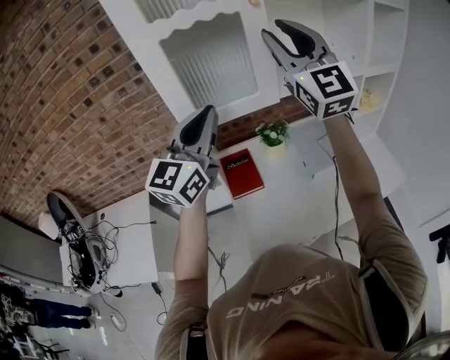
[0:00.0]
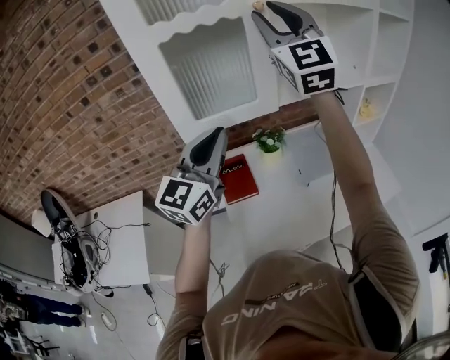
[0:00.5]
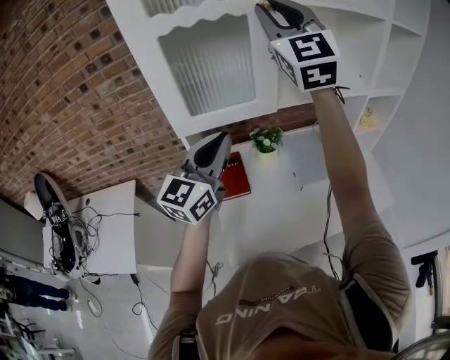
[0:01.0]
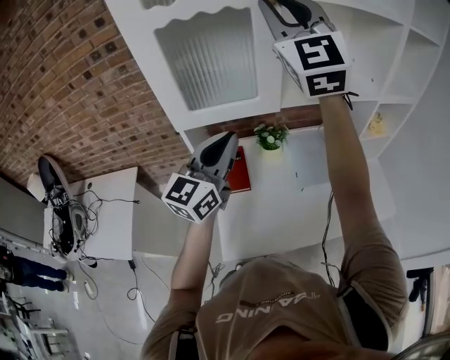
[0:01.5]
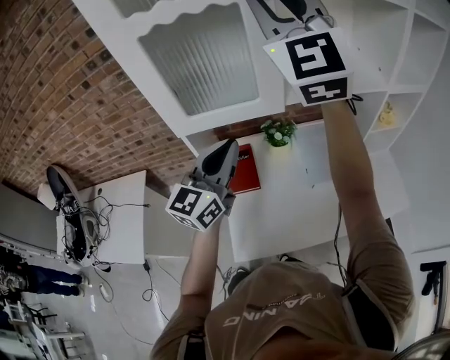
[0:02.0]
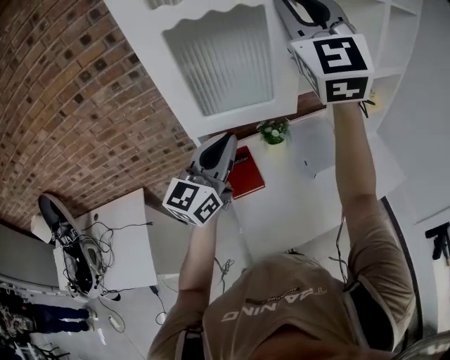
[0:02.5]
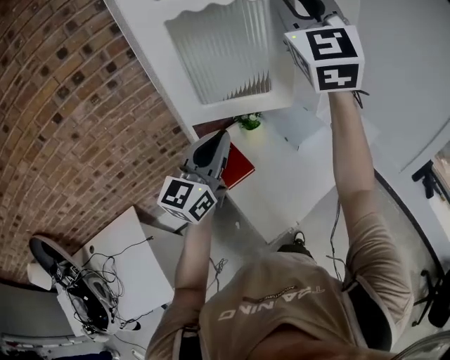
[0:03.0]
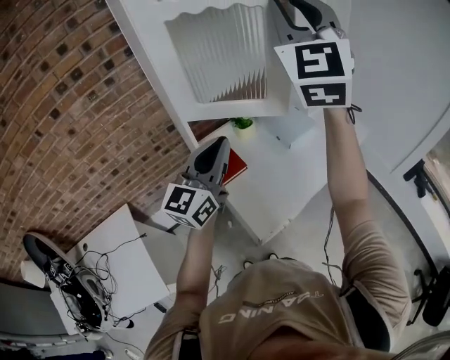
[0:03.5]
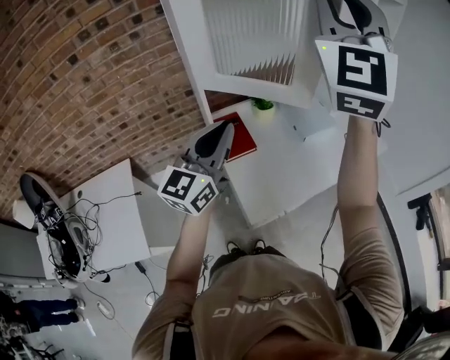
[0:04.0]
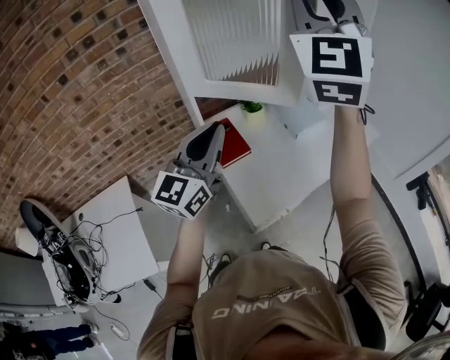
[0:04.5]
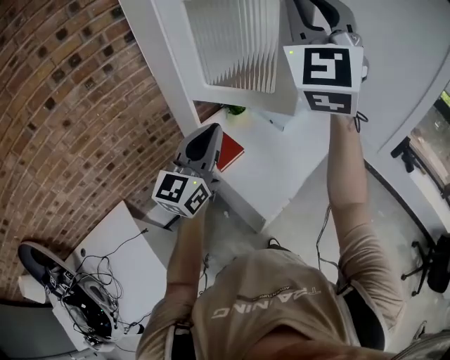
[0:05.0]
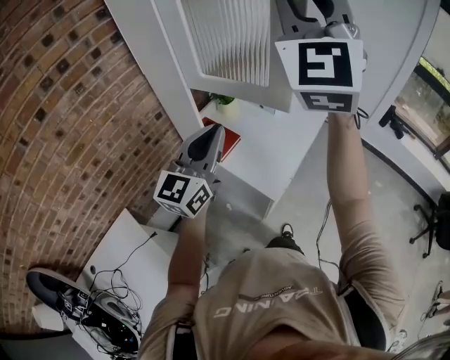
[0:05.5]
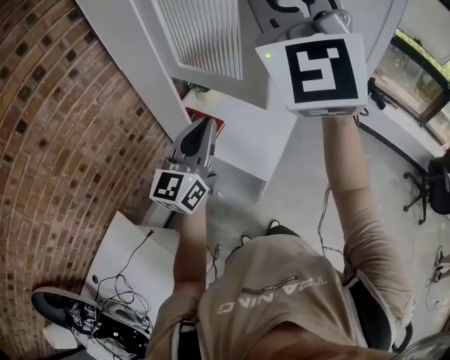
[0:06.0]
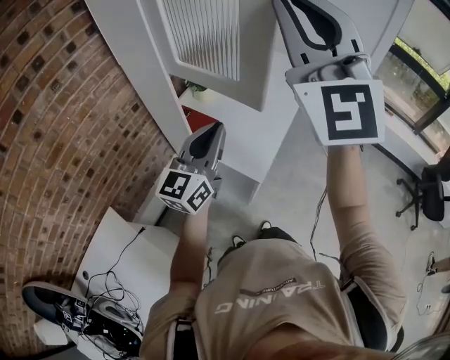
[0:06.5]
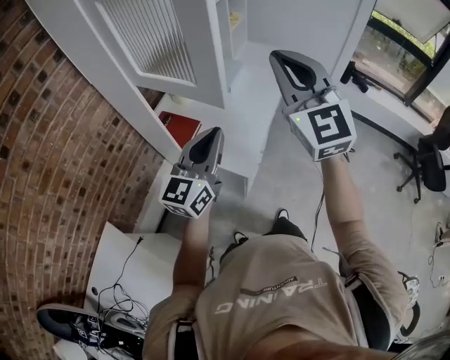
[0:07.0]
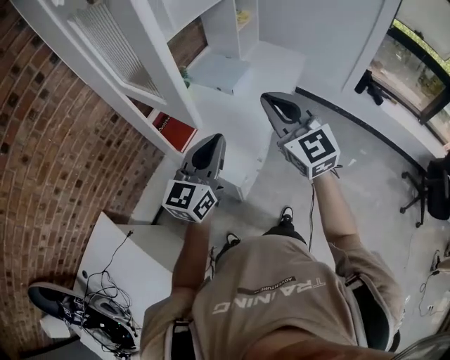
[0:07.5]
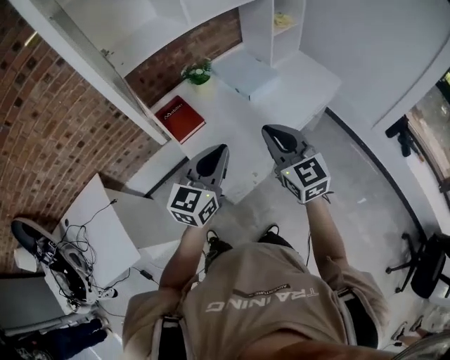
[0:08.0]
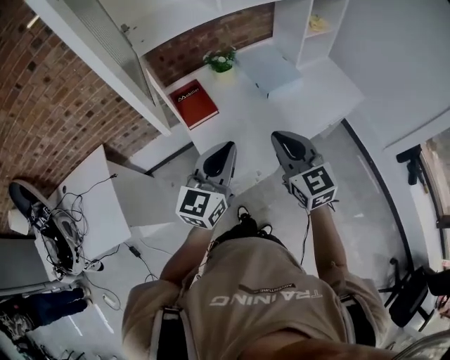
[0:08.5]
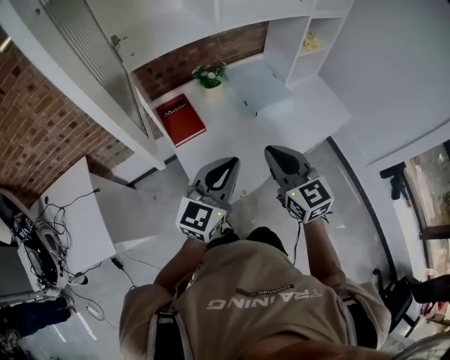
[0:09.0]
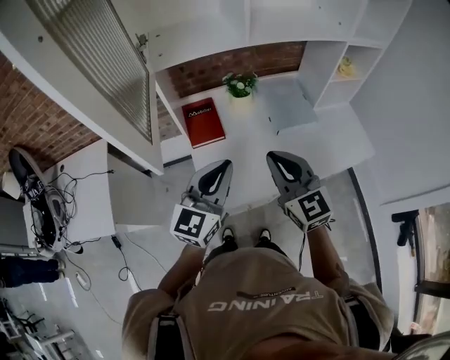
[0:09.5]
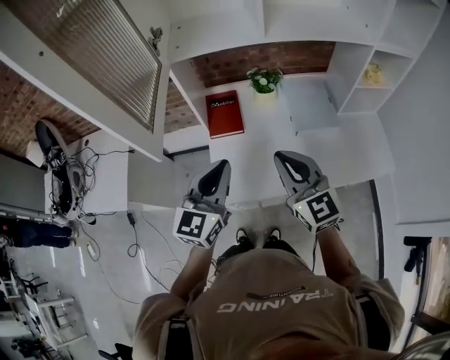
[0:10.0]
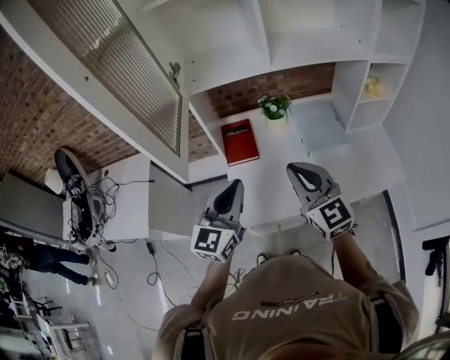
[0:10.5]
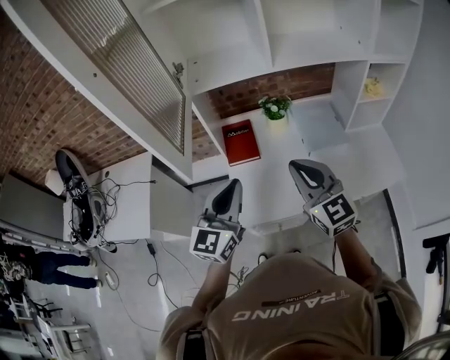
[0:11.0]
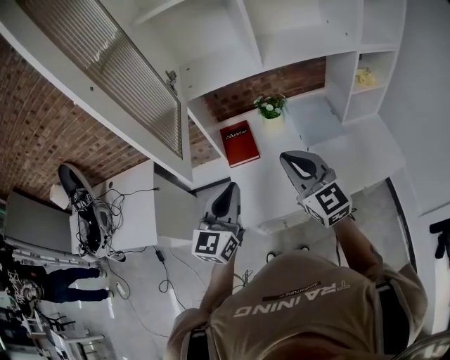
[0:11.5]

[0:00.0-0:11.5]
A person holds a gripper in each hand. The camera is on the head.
0:00.0 to 0:02.0: The right gripper heads upward, covering approximately 5 cm; the left gripper is displaced downward by approximately 10 cm.
0:02.0 to 0:04.0: The right gripper changes place by some 15 cm, and changes its angle by roughly 30 degrees; the left gripper ends up roughly 15 cm from where it was.
0:04.0 to 0:06.0: The left gripper moves backward and to the left, about 10 cm, and rotates approximately 30 degrees; the right gripper travels backward by roughly 20 cm, and turns by some 20 degrees.
0:06.0 to 0:07.5: The right gripper moves downward and to the right, about 35 cm, and changes its angle by roughly 50 degrees. The left gripper shifts approximately 20 cm to the right and downward.
0:07.5 to 0:09.5: The left gripper moves some 10 cm, and rotates roughly 40 degrees, while the right gripper ends up some 15 cm from where it was, and changes its angle by some 40 degrees.
0:09.5 to 0:11.5: The right gripper moves upward, approximately 5 cm; the left gripper ends up approximately 5 cm from where it was.

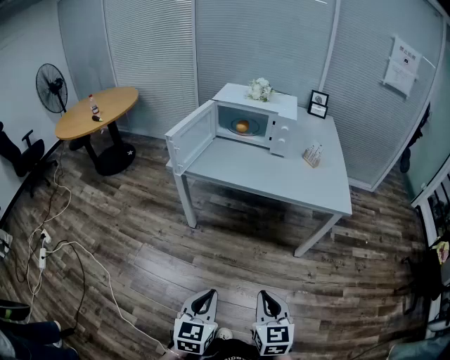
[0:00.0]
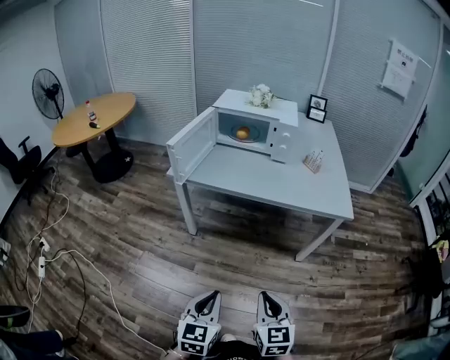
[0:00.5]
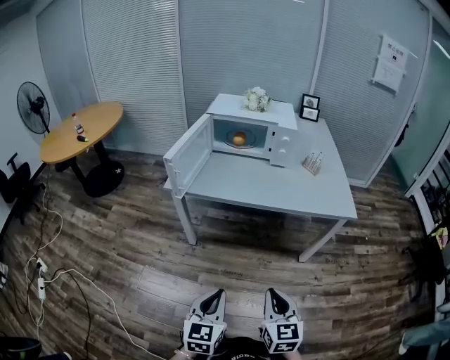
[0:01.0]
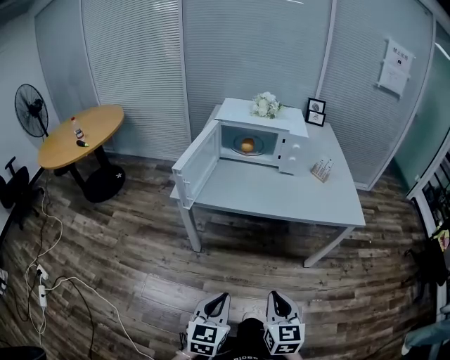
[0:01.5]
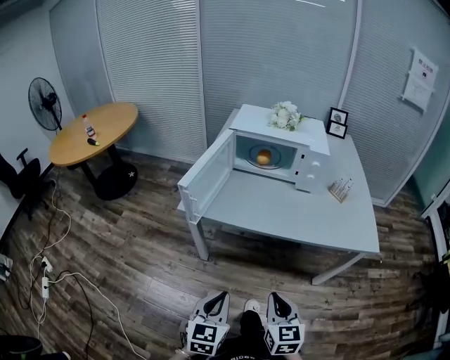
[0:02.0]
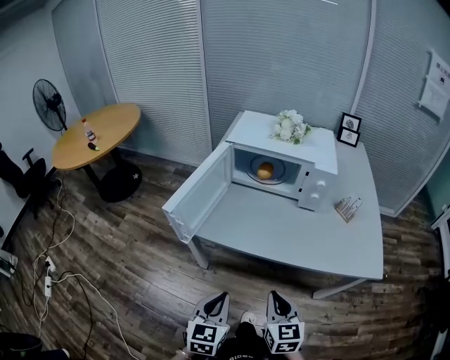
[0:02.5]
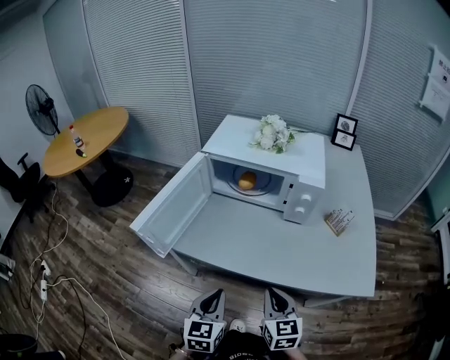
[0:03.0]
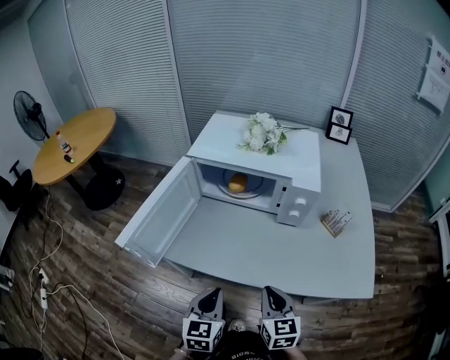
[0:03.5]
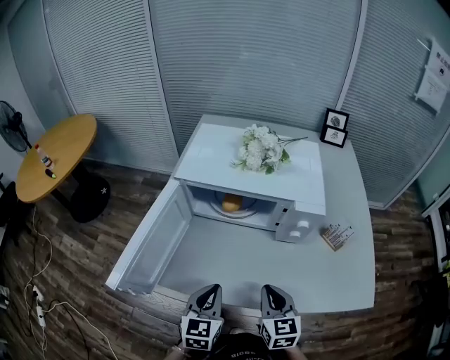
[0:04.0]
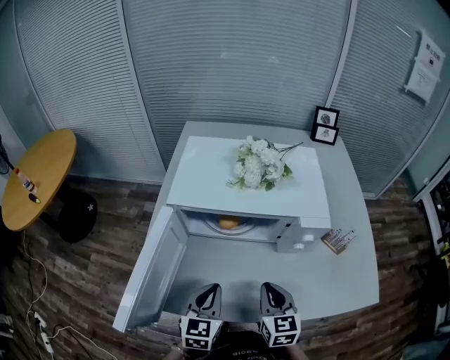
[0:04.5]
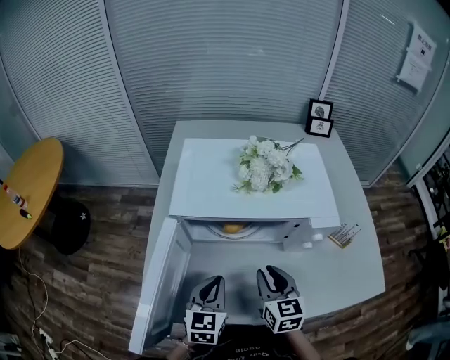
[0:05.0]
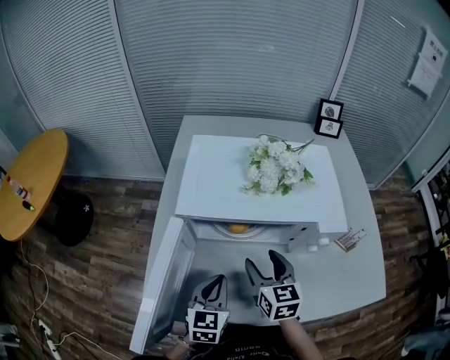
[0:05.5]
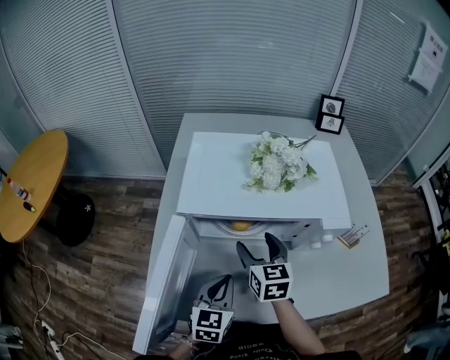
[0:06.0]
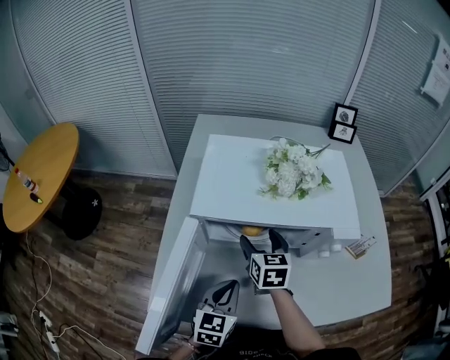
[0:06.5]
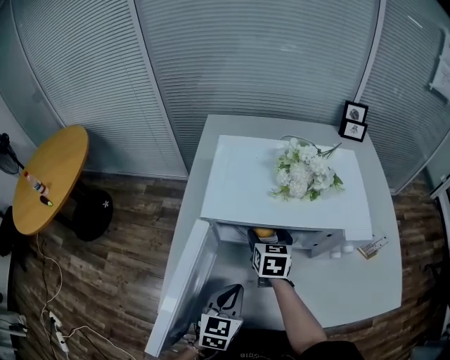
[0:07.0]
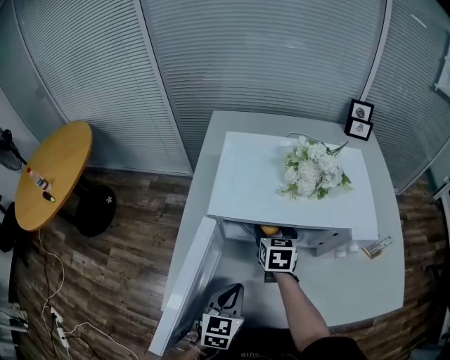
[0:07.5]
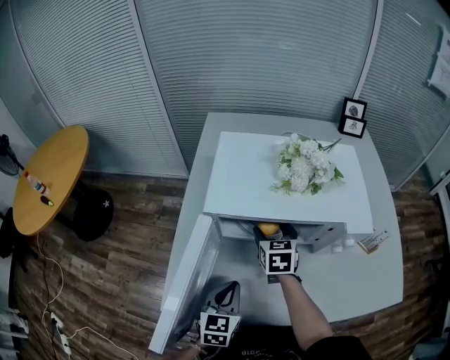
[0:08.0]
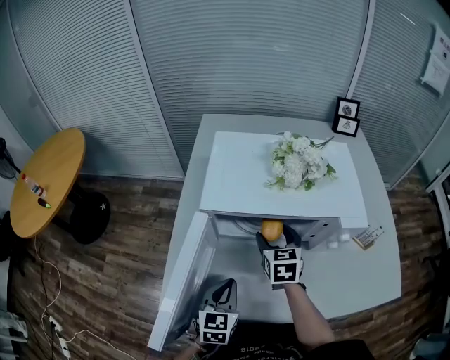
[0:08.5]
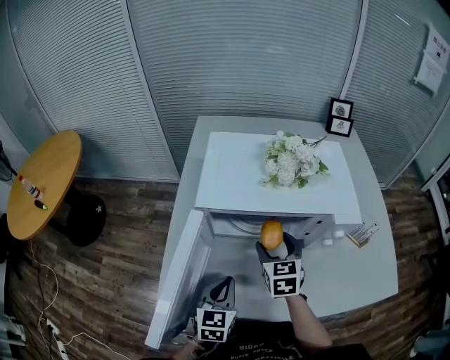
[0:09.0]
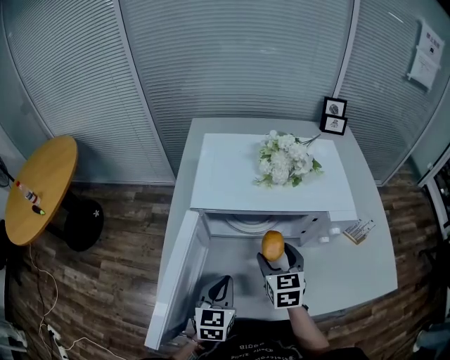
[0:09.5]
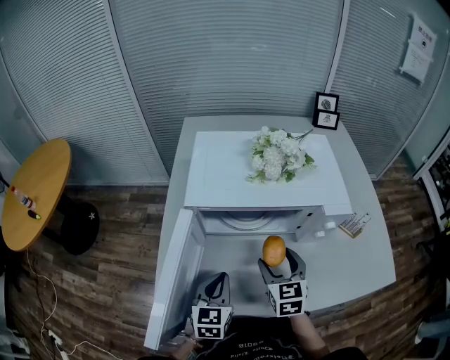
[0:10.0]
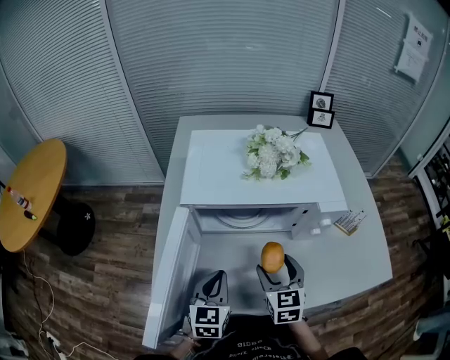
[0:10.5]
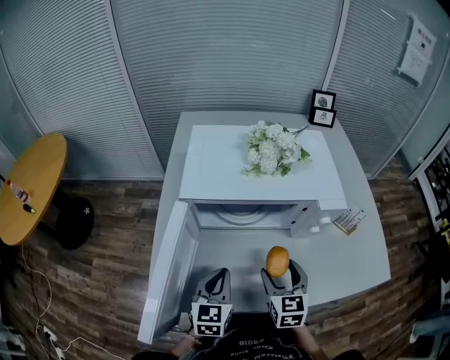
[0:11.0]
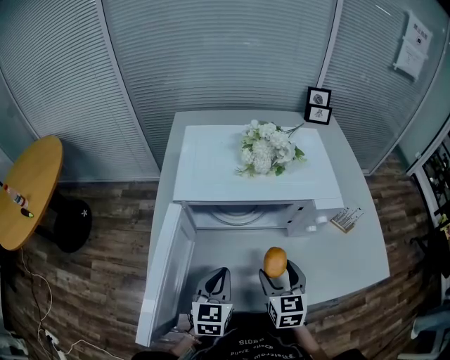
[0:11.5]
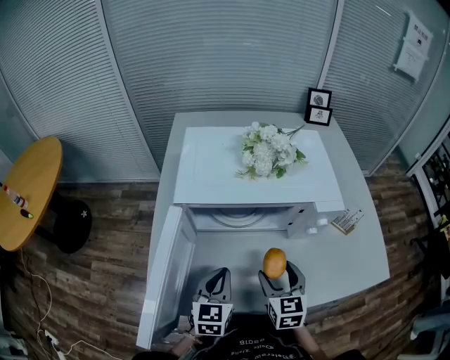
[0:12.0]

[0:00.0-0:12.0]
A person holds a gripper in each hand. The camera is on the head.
0:00.0 to 0:02.0: The two grippers go some 25 cm forward and to the left.
0:02.0 to 0:04.0: Both grippers move forward, about 35 cm.
0:04.0 to 0:06.0: The right gripper travels forward and to the left by roughly 25 cm, and opens. Meanwhile the left gripper travels forward by approximately 10 cm.
0:06.0 to 0:08.0: The right gripper moves forward, approximately 5 cm.
0:08.0 to 0:10.0: The right gripper is displaced backward and to the right by approximately 15 cm.
0:10.0 to 0:12.0: The right gripper moves some 5 cm.

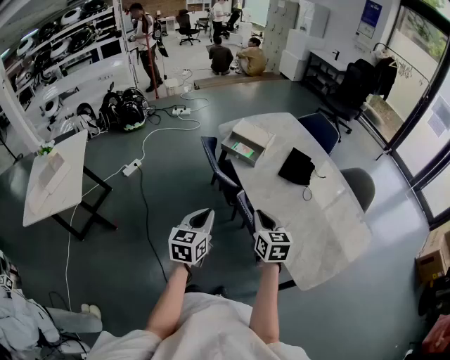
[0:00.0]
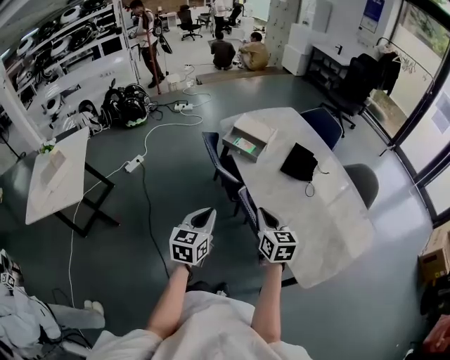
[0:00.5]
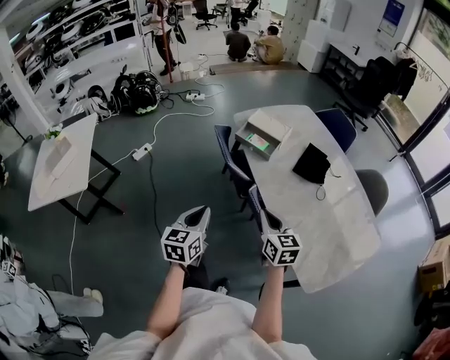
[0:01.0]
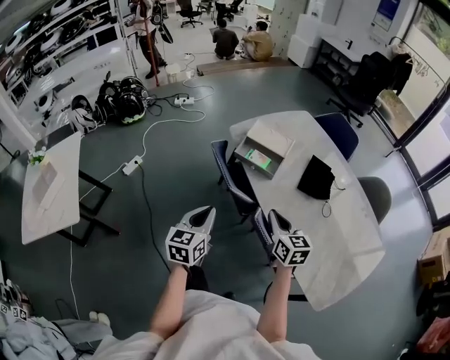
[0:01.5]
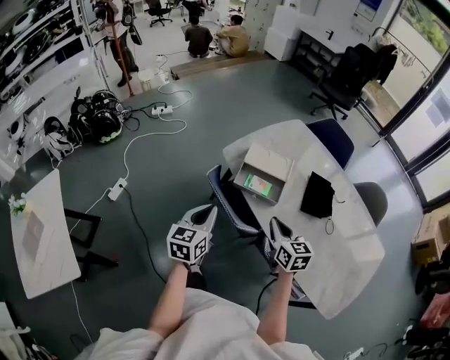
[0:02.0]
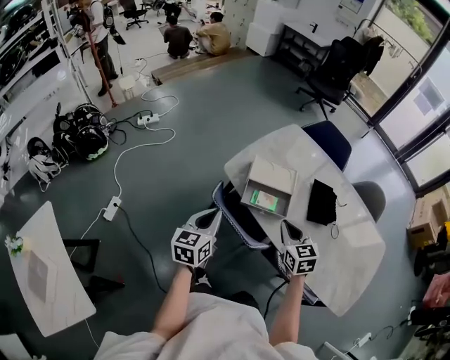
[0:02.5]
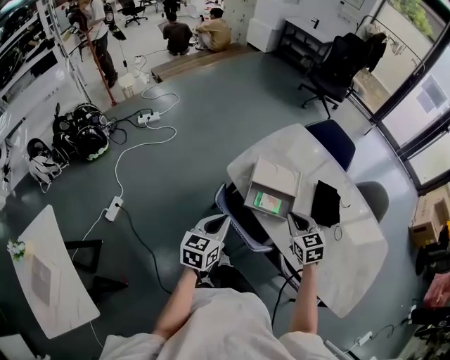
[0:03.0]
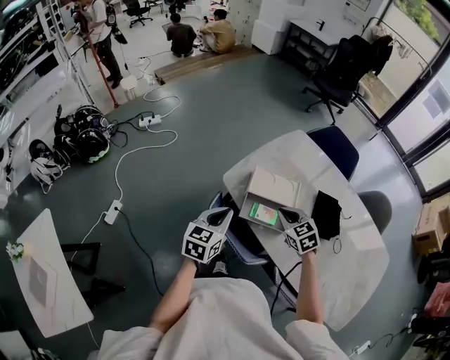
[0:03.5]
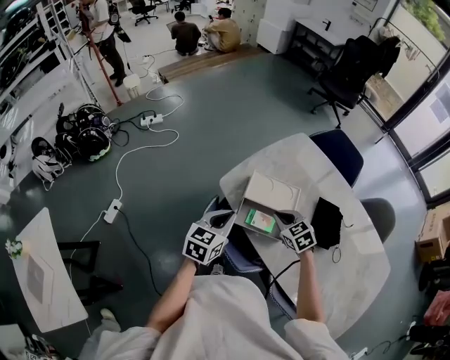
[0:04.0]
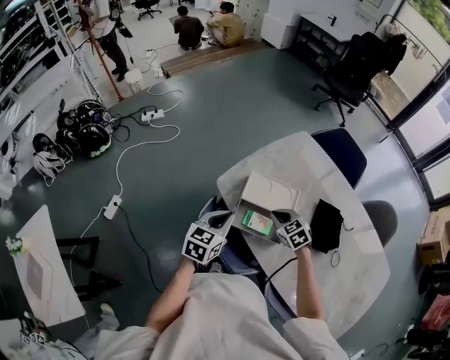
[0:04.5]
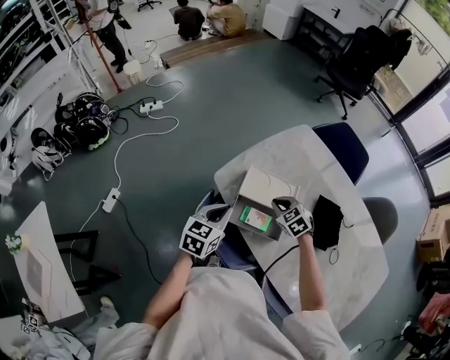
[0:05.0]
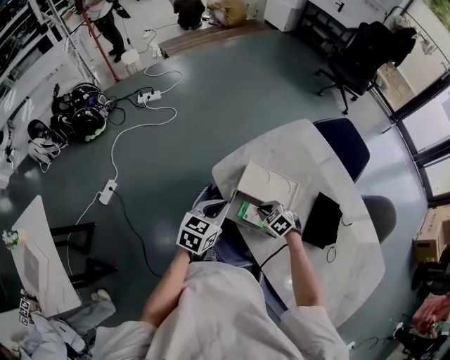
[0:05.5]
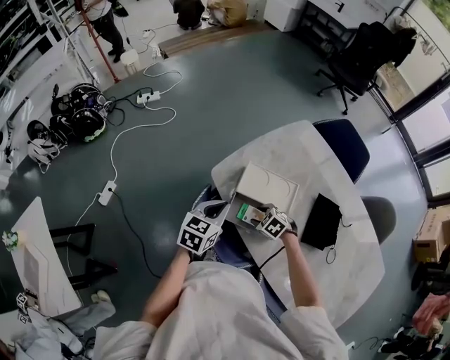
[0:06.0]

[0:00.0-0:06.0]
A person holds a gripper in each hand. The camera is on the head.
0:00.0 to 0:02.0: The two grippers go about 30 cm forward.
0:02.0 to 0:04.0: The right gripper is displaced forward and downward by roughly 25 cm, and changes its angle by some 40 degrees, while the left gripper goes approximately 20 cm forward.
0:04.0 to 0:06.0: The left gripper is displaced downward by about 5 cm. The right gripper moves downward, some 15 cm, rotates approximately 30 degrees, and opens.
